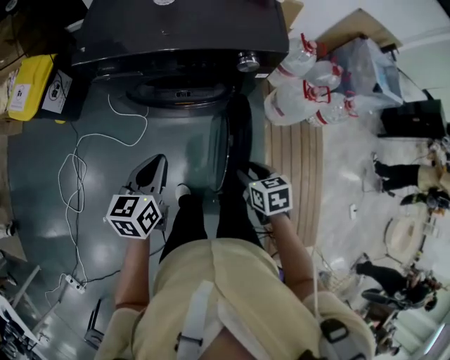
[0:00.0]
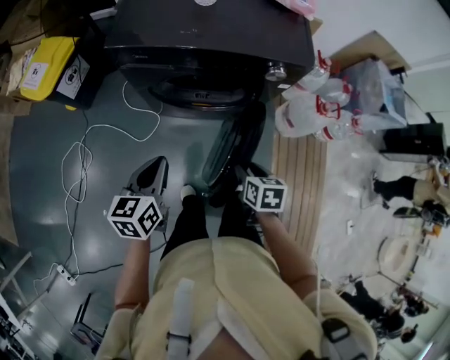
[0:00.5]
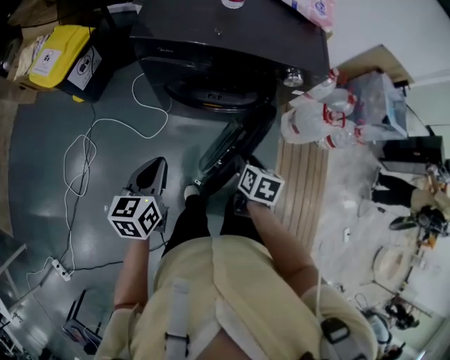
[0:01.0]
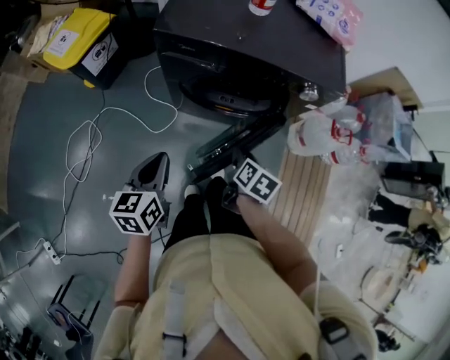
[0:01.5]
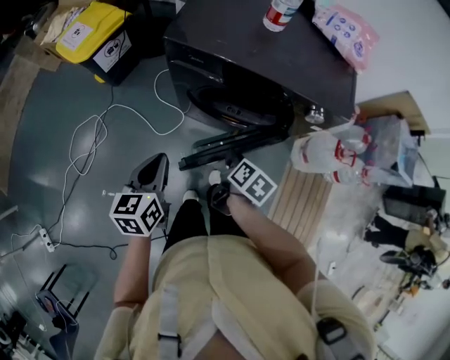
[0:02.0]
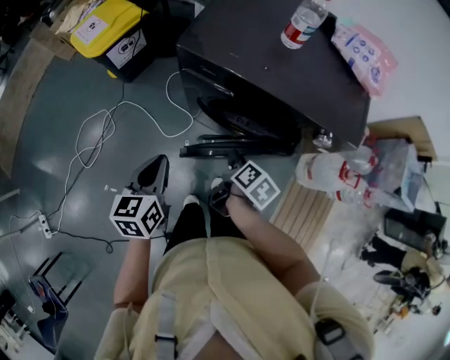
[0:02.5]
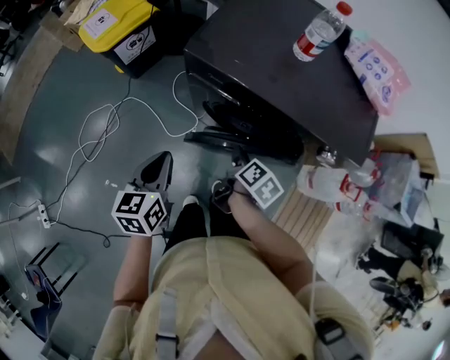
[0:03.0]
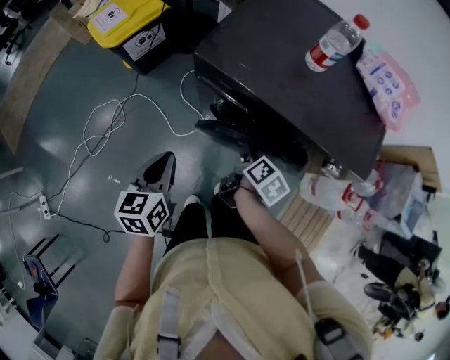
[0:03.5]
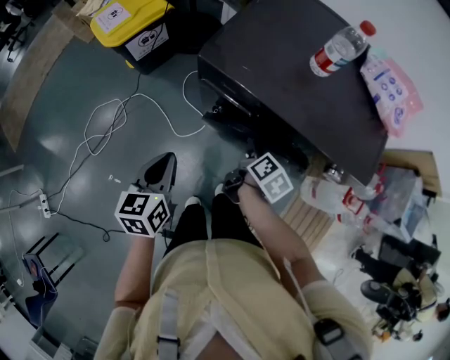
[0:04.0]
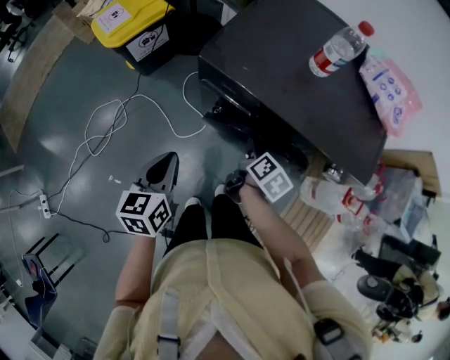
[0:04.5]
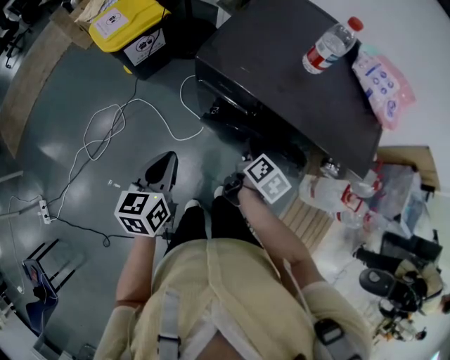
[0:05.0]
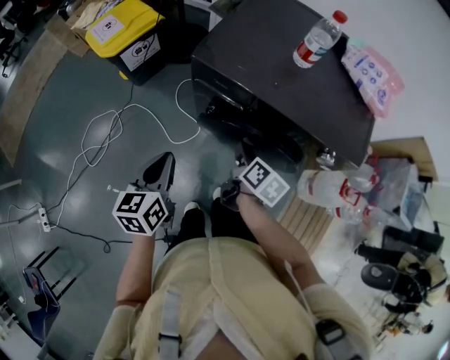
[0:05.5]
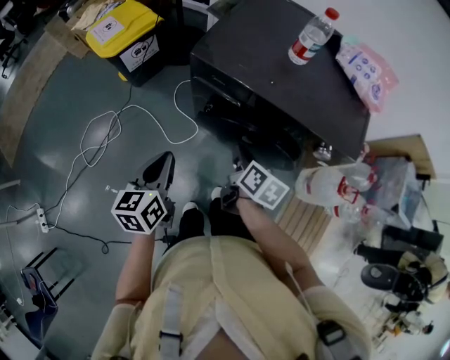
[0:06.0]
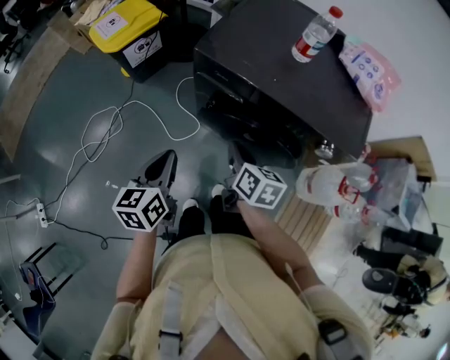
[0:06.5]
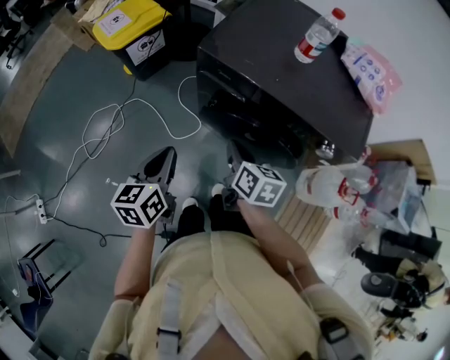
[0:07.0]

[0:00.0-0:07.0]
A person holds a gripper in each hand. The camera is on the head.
0:00.0 to 0:02.0: The left gripper is displaced to the left by roughly 15 cm, and changes its angle by approximately 20 degrees. The right gripper is displaced to the left and forward by some 20 cm, and turns by some 30 degrees.
0:02.0 to 0:03.5: The left gripper moves forward, about 5 cm. The right gripper goes approximately 15 cm forward.
0:03.5 to 0:05.0: There are only small adjustments of the grippers.
0:05.0 to 0:07.0: The right gripper travels upward, backward and to the left by roughly 10 cm, rotates about 30 degrees, and closes.

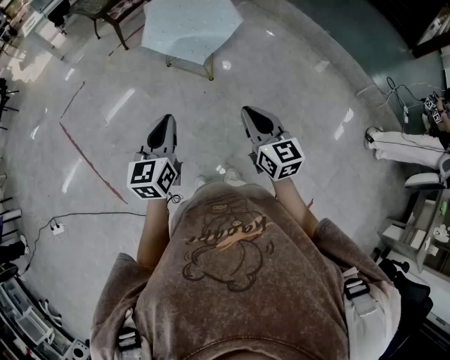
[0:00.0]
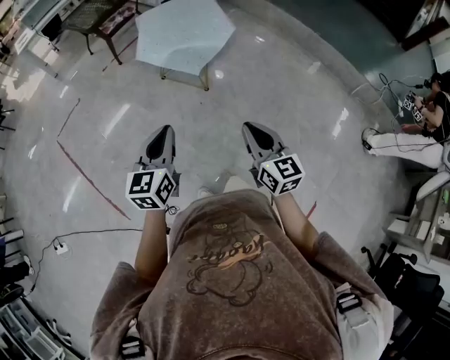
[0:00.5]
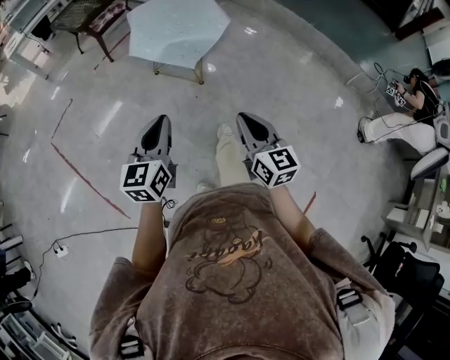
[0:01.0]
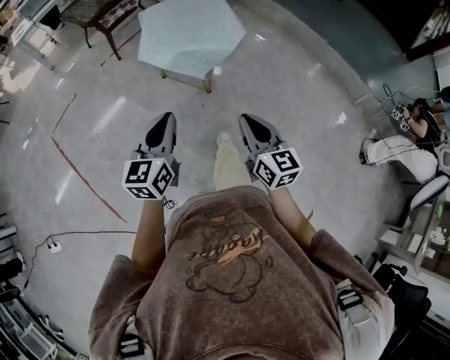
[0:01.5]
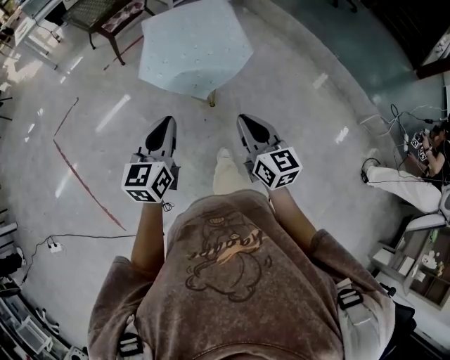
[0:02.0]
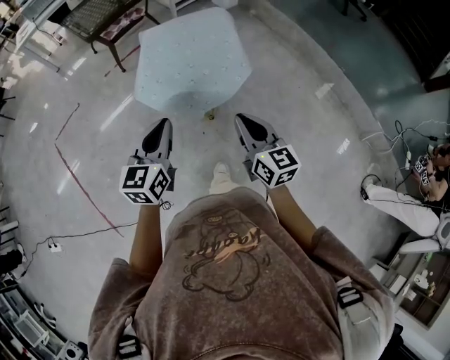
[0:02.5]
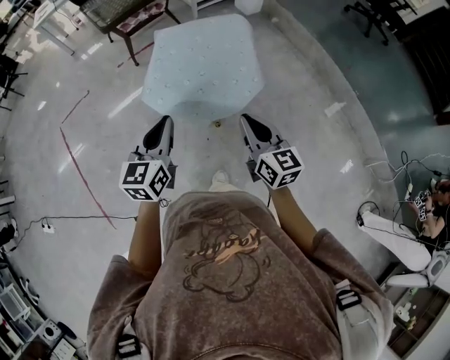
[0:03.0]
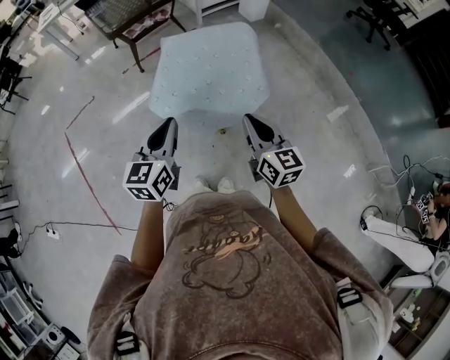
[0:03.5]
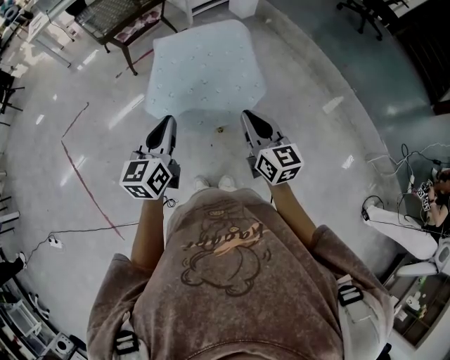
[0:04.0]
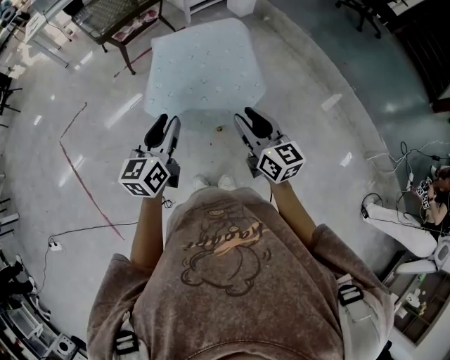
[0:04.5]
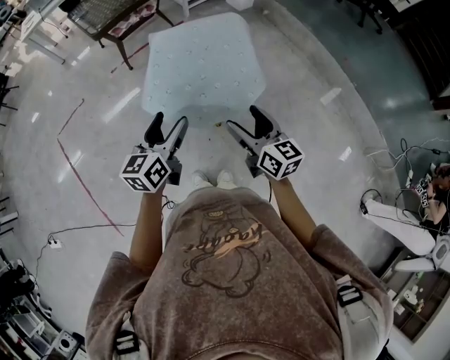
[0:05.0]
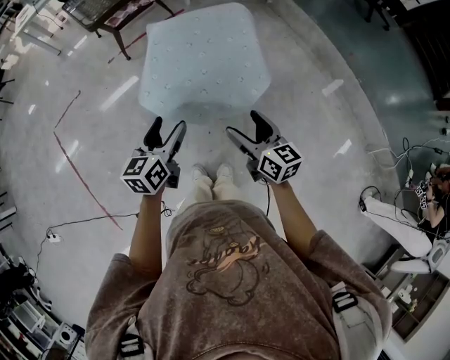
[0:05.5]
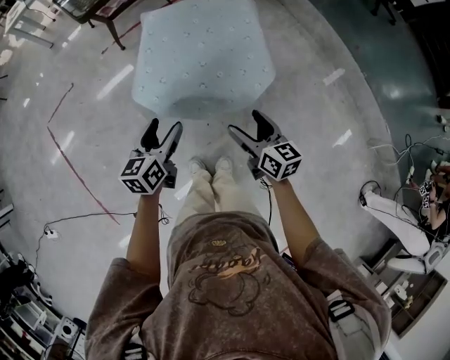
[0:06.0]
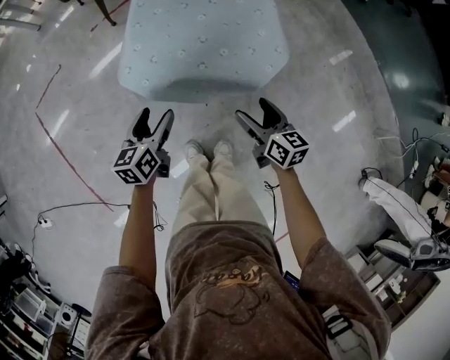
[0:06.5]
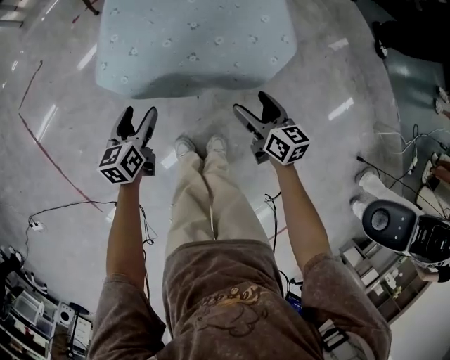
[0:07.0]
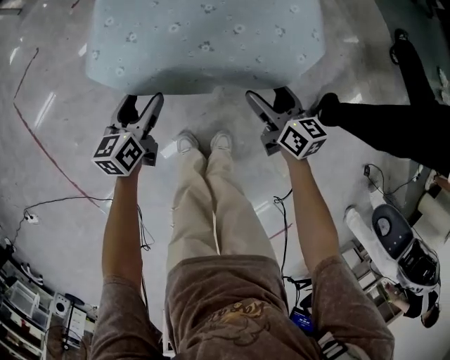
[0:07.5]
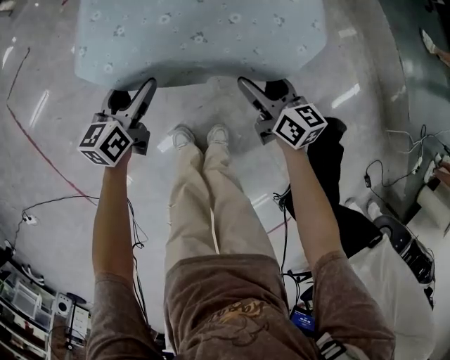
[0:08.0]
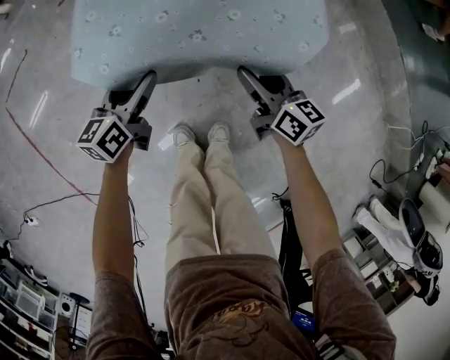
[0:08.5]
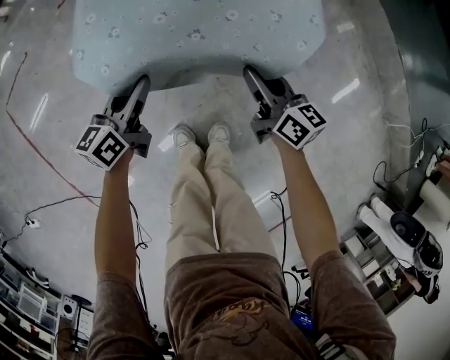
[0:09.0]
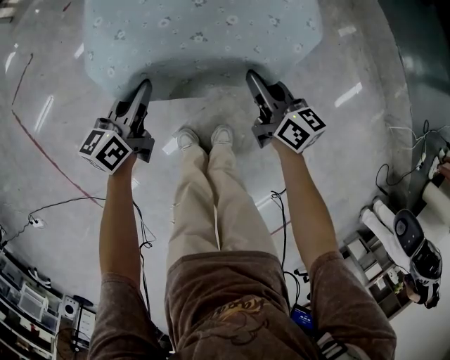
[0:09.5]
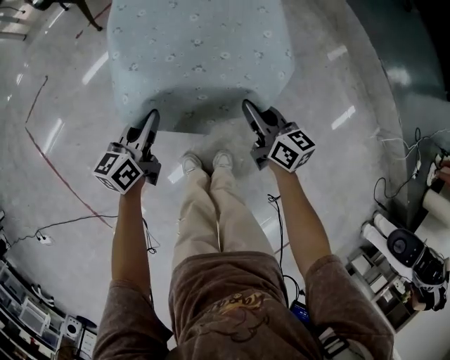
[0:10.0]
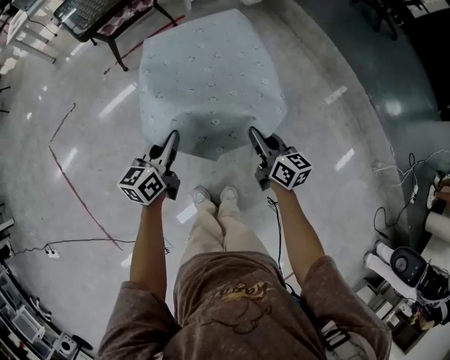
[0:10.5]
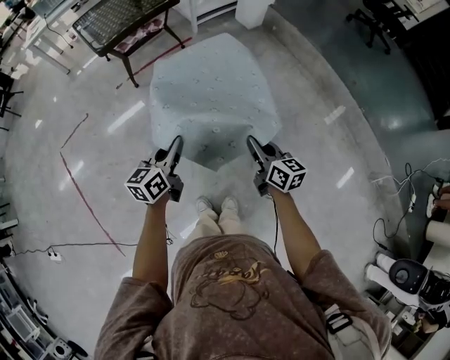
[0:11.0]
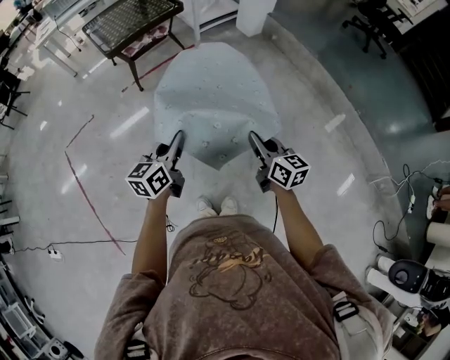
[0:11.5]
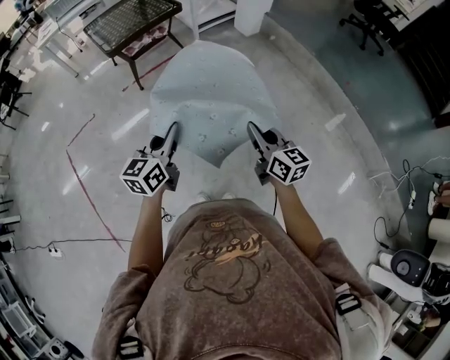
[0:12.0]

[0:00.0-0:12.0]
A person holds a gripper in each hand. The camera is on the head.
0:00.0 to 0:02.0: The two grippers go approximately 20 cm forward.
0:02.0 to 0:04.0: Both grippers travel together forward, about 20 cm.
0:04.0 to 0:06.0: Both grippers travel together downward, roughly 15 cm. The right gripper opens its fingers; the left gripper opens up.
0:06.0 to 0:08.0: Both grippers travel together downward, approximately 25 cm.
0:08.0 to 0:10.0: The grippers both shift upward by approximately 10 cm. The right gripper closes up, while the left gripper closes its fingers.
0:10.0 to 0:12.0: Both grippers travel together upward, roughly 30 cm. The left gripper changes its angle by roughly 20 degrees.

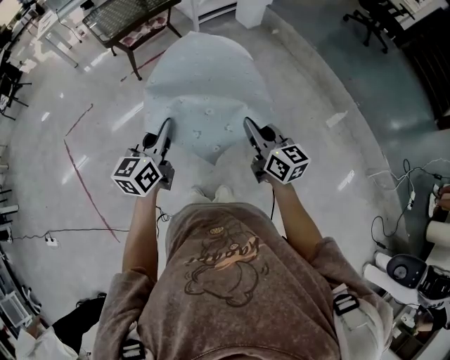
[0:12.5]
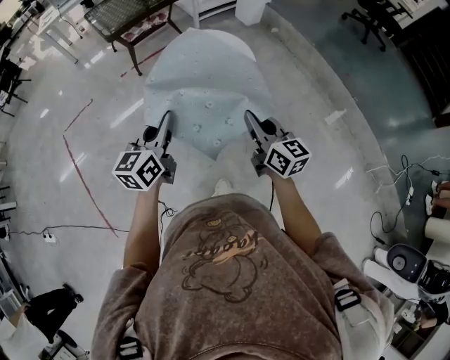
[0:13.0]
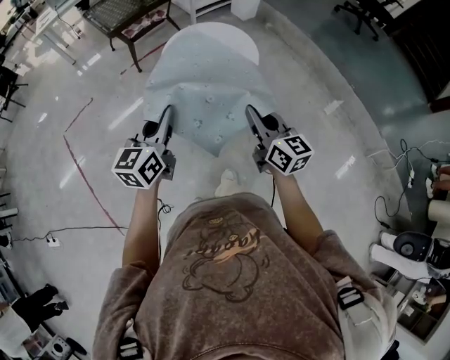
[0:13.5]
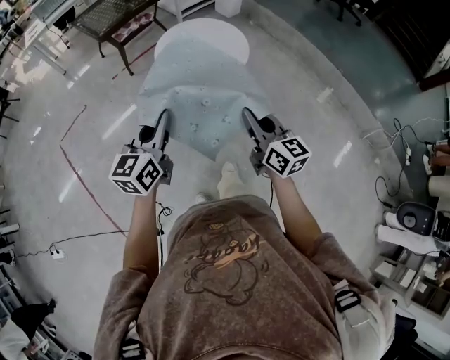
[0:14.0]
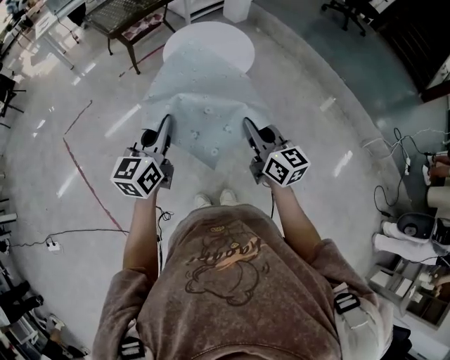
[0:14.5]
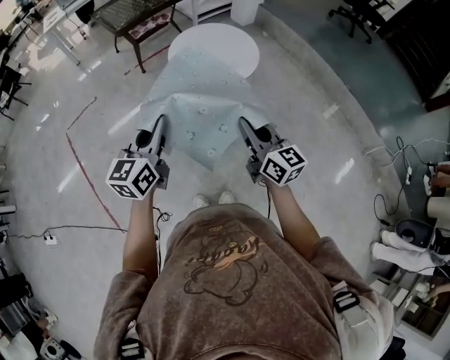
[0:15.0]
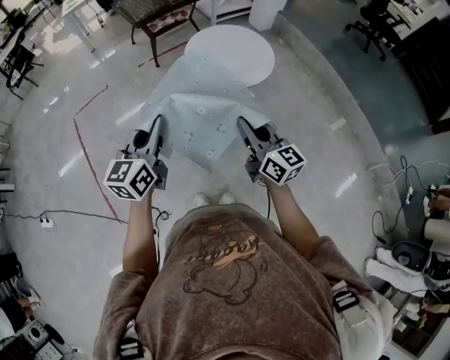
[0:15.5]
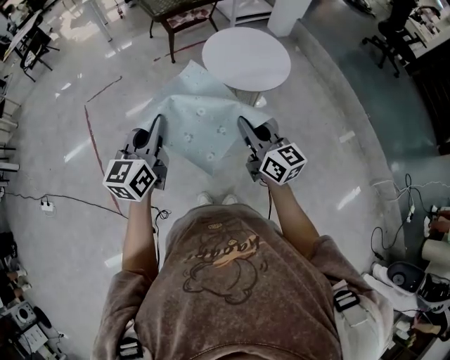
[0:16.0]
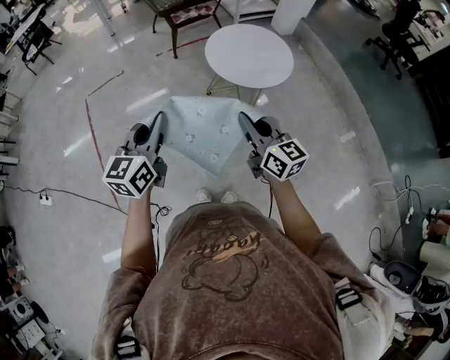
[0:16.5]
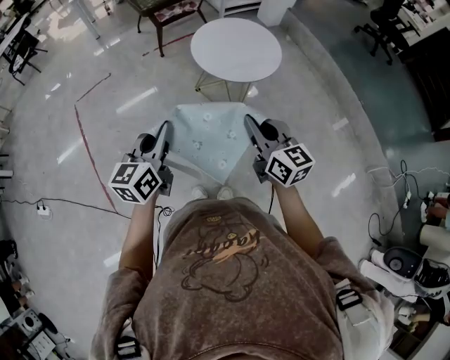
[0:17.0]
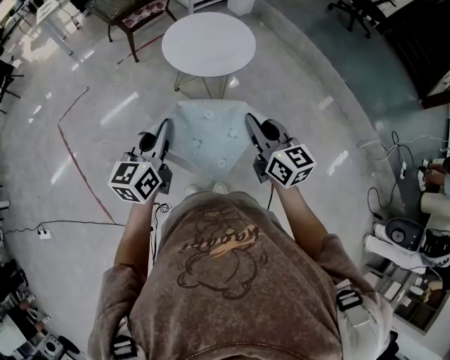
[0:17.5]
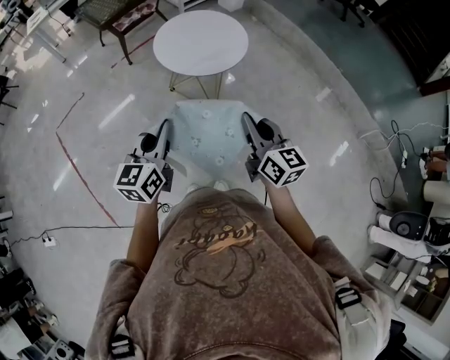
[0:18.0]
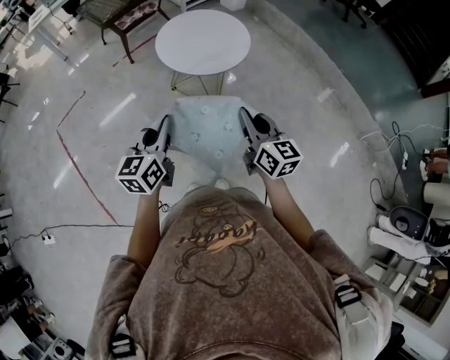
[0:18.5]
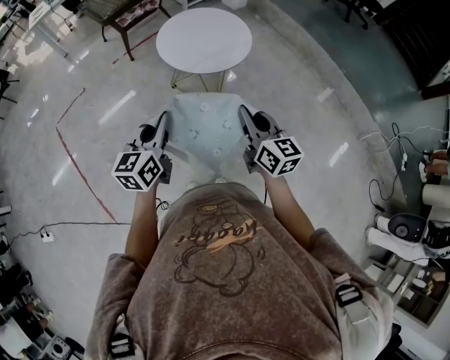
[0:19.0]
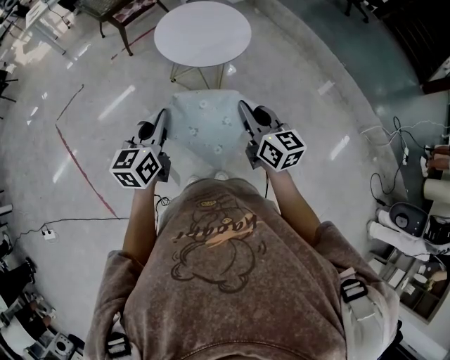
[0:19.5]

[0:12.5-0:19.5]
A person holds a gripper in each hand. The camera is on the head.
0:12.5 to 0:14.5: Both grippers travel together backward and to the left, some 20 cm.
0:14.5 to 0:16.0: The two grippers go some 10 cm to the left.
0:16.0 to 0:17.5: The two grippers go about 10 cm to the right.
0:17.5 to 0:19.5: The grippers move only a little.

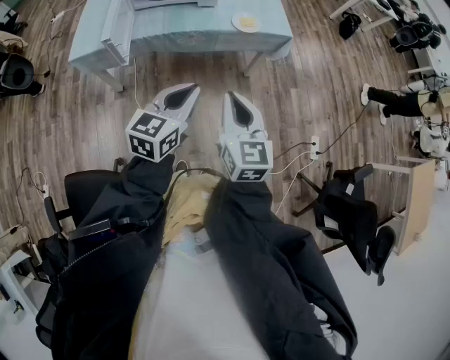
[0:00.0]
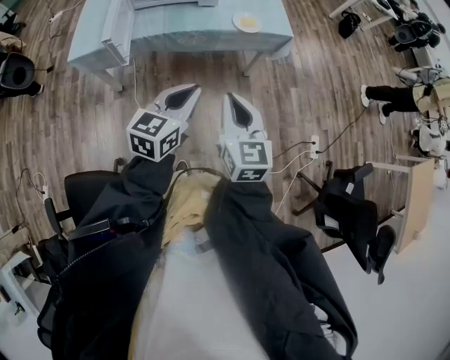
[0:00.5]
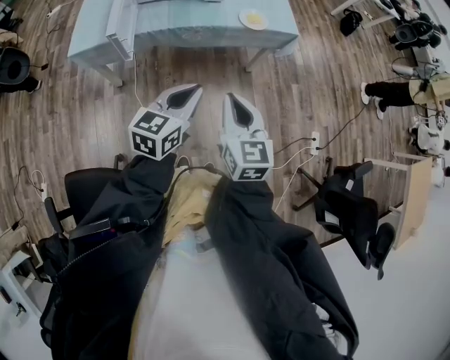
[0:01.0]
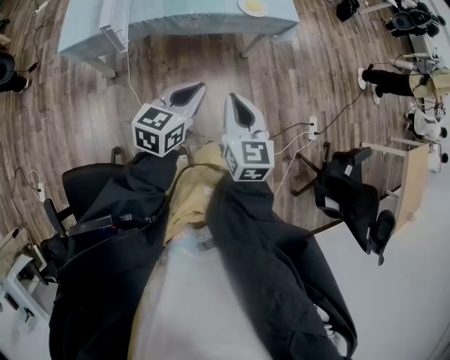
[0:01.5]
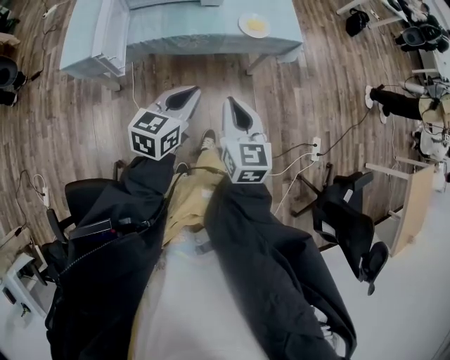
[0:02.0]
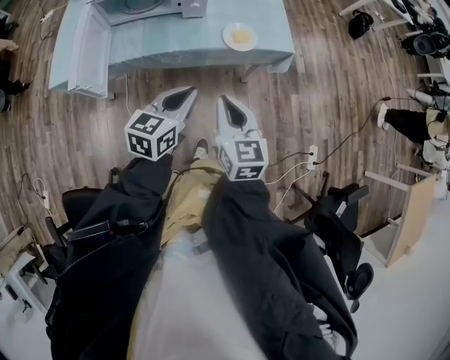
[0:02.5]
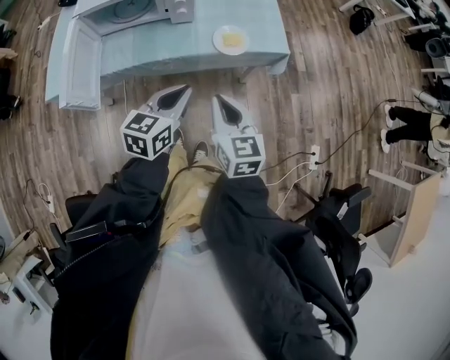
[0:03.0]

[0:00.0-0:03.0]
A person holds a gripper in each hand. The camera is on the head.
0:00.0 to 0:01.5: The left gripper goes roughly 5 cm downward, while the right gripper shifts by approximately 5 cm.
0:01.5 to 0:03.0: Both grippers move forward, some 25 cm.
